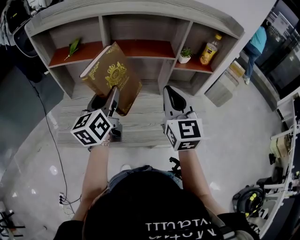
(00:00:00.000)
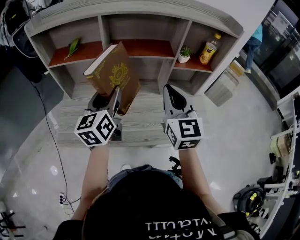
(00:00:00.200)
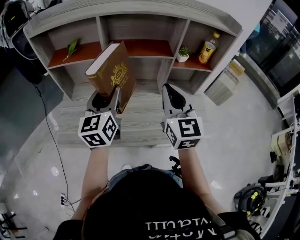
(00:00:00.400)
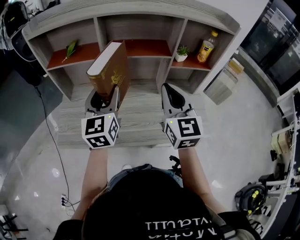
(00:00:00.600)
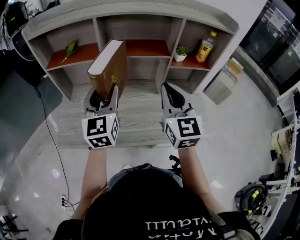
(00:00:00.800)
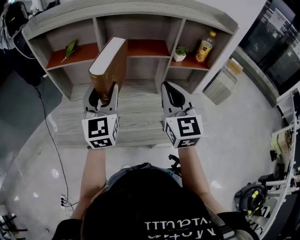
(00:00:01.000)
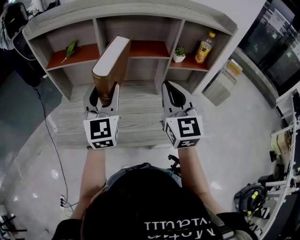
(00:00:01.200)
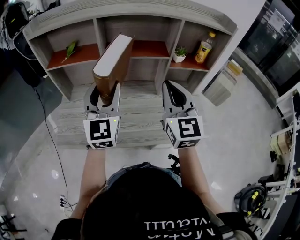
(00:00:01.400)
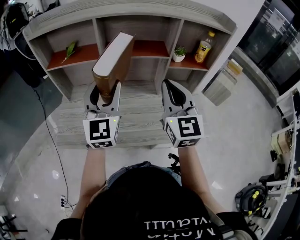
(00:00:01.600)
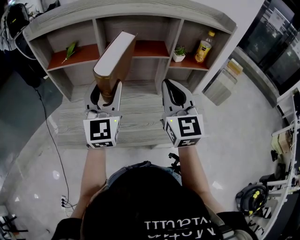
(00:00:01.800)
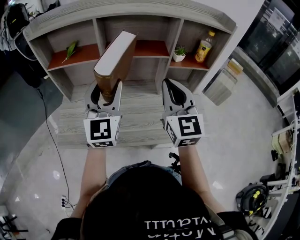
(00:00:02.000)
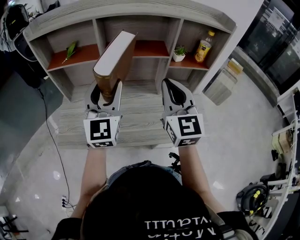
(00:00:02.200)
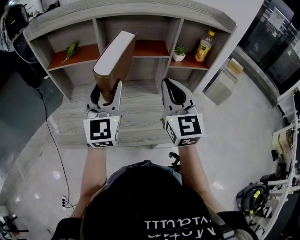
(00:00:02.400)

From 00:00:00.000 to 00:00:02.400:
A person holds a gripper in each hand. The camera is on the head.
From 00:00:00.000 to 00:00:01.200: The left gripper ends up roughly 5 cm from where it was, and rolls clockwise, seen from behind, by about 40 degrees.
From 00:00:01.200 to 00:00:02.400: There are only small adjustments of the grippers.

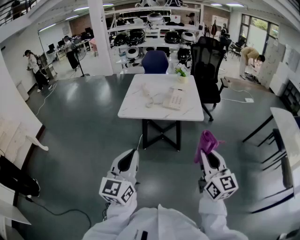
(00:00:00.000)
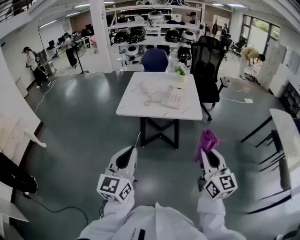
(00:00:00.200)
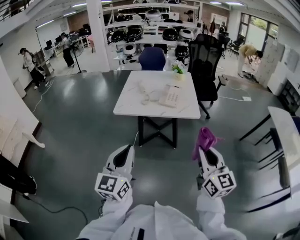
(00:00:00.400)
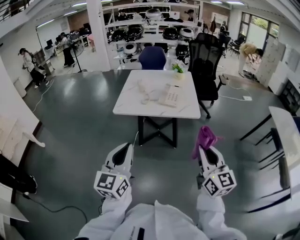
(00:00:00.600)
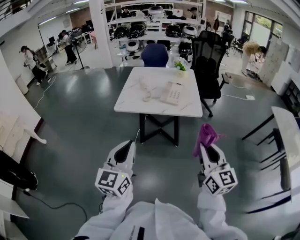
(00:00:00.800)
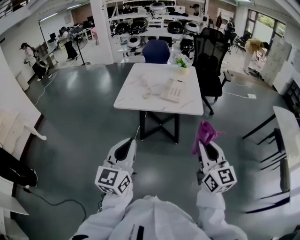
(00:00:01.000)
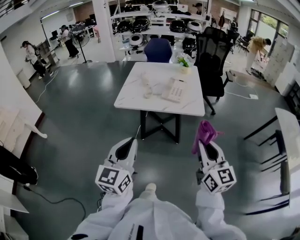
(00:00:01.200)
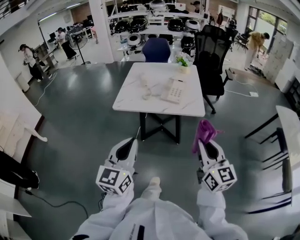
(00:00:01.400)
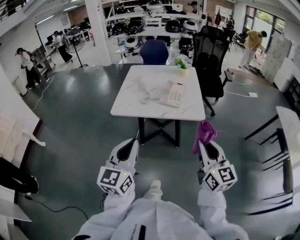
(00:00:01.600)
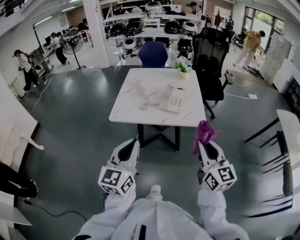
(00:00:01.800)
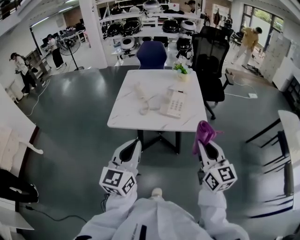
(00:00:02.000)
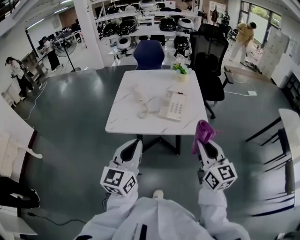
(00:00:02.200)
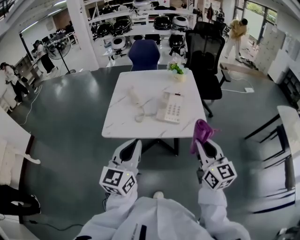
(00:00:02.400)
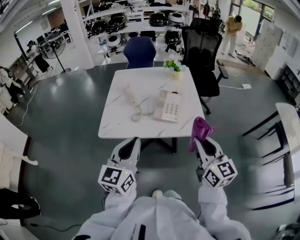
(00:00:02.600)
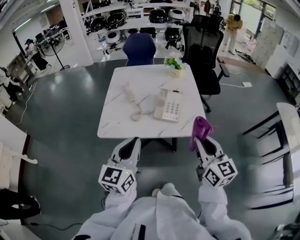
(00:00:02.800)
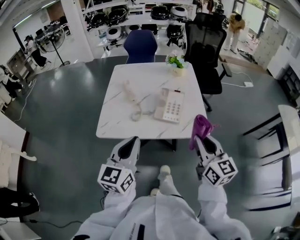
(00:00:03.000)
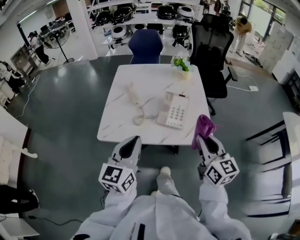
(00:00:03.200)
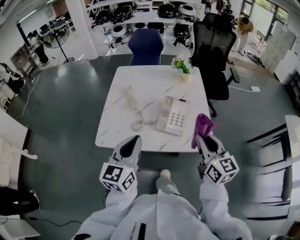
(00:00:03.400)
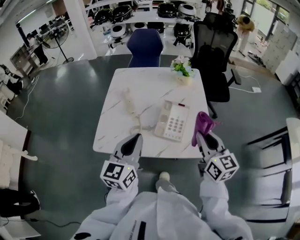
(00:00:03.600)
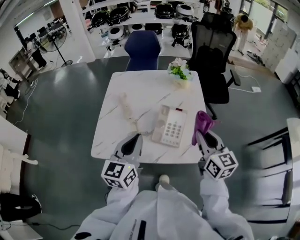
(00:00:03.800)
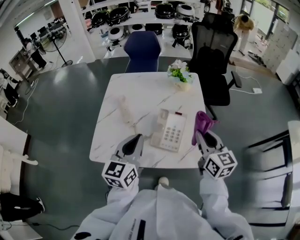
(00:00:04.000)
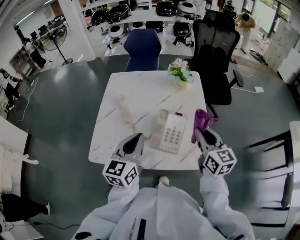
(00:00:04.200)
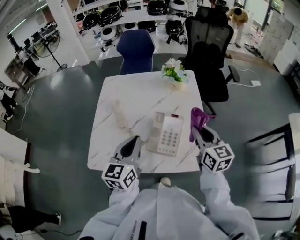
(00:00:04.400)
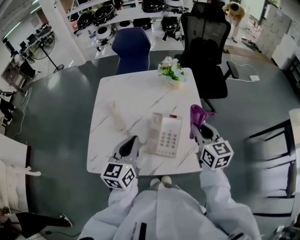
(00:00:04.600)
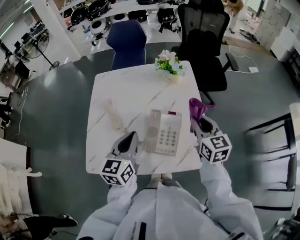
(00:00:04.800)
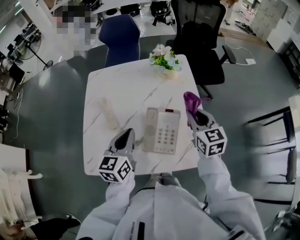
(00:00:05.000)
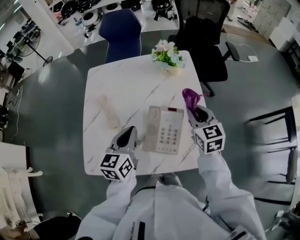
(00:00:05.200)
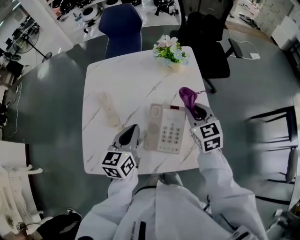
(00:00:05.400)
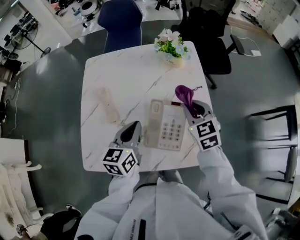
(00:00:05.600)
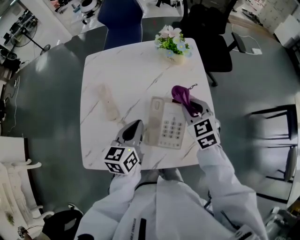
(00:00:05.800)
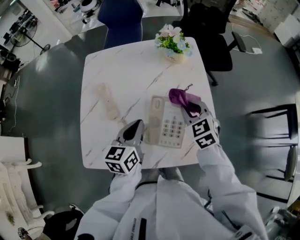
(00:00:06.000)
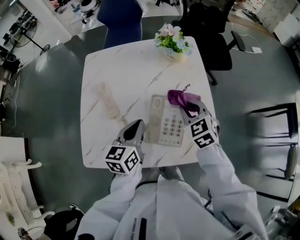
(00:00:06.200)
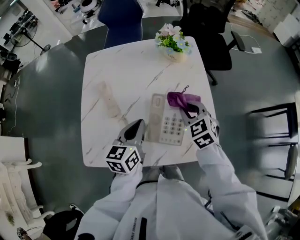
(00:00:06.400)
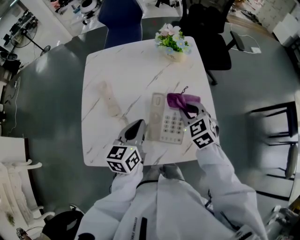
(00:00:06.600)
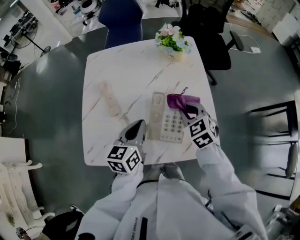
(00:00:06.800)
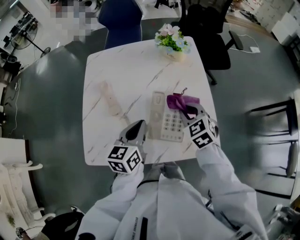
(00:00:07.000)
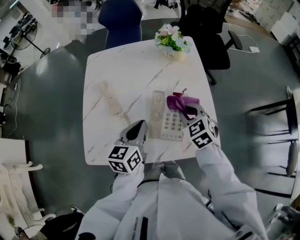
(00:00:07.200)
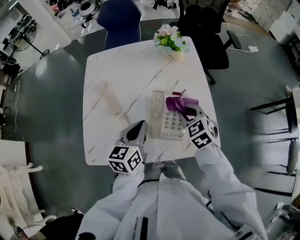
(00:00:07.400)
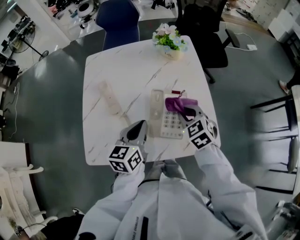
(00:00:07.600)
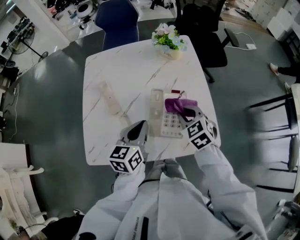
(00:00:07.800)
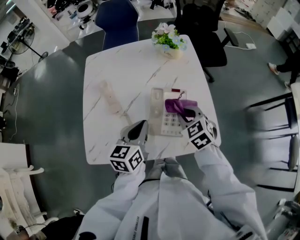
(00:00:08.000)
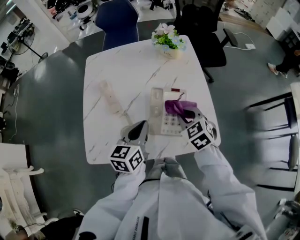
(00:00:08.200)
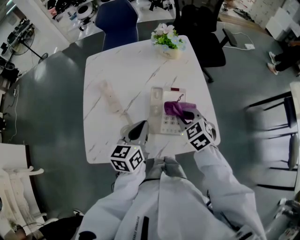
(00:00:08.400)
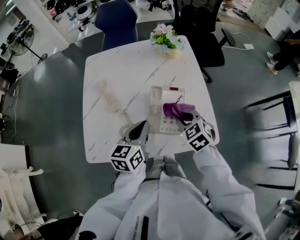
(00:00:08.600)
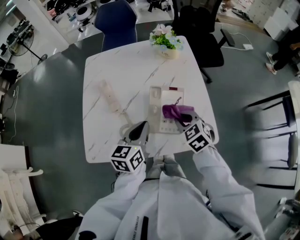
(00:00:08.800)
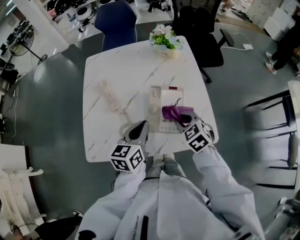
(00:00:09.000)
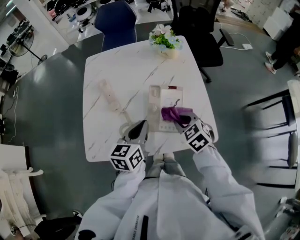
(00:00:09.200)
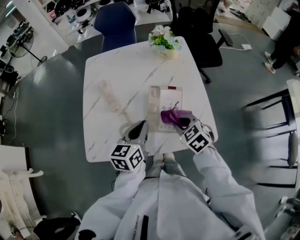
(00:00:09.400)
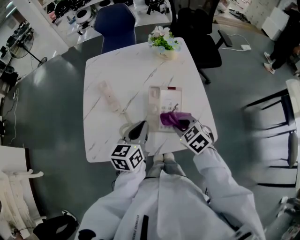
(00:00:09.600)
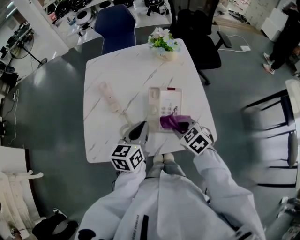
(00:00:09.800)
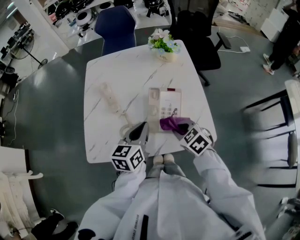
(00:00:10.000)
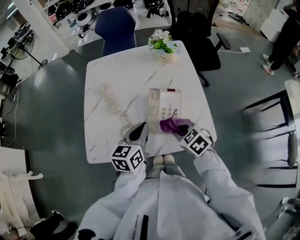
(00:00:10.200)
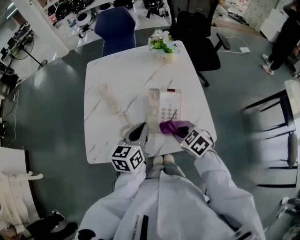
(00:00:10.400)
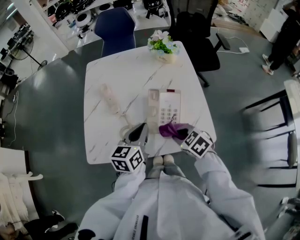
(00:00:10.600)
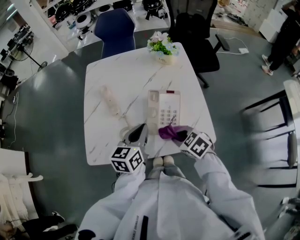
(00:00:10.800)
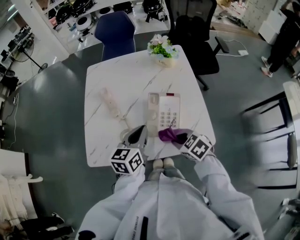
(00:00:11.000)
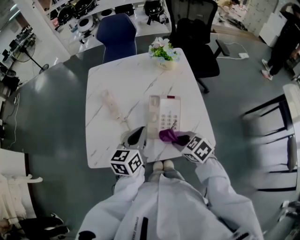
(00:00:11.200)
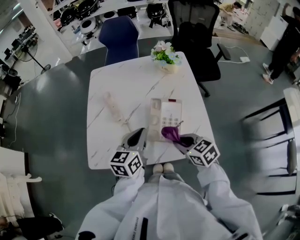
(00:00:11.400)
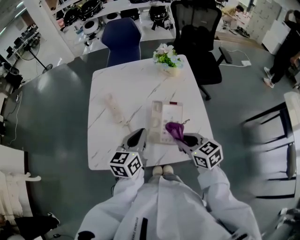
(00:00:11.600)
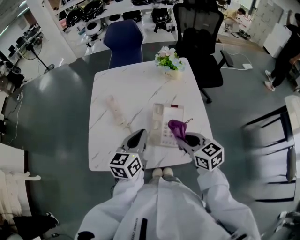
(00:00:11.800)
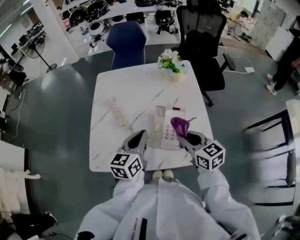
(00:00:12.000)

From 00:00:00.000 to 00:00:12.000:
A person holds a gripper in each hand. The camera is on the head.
From 00:00:00.000 to 00:00:01.600: The two grippers go approximately 10 cm forward.
From 00:00:01.600 to 00:00:03.000: The grippers both shift forward by some 25 cm.
From 00:00:03.000 to 00:00:04.400: Both grippers travel together forward, roughly 25 cm.
From 00:00:04.400 to 00:00:06.000: The right gripper is displaced downward, forward and to the left by roughly 15 cm, and rotates roughly 40 degrees; the left gripper is displaced downward and forward by about 15 cm.
From 00:00:06.000 to 00:00:07.600: The right gripper goes some 5 cm backward.
From 00:00:07.600 to 00:00:09.000: The right gripper travels backward by about 5 cm.
From 00:00:09.000 to 00:00:10.400: The right gripper travels backward by approximately 5 cm.
From 00:00:10.400 to 00:00:12.000: The right gripper is displaced upward by approximately 10 cm, and rotates roughly 30 degrees.

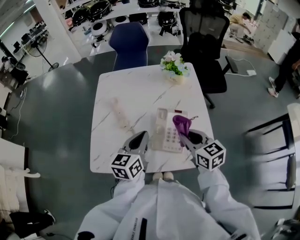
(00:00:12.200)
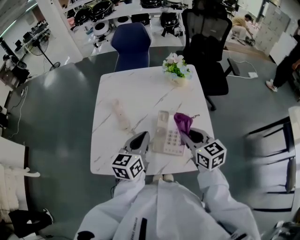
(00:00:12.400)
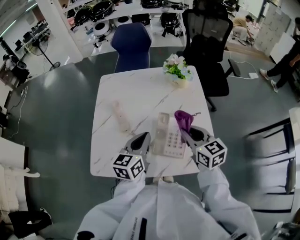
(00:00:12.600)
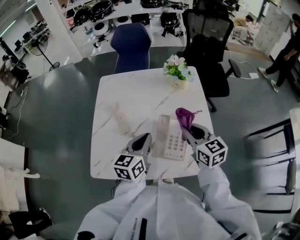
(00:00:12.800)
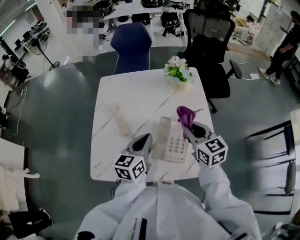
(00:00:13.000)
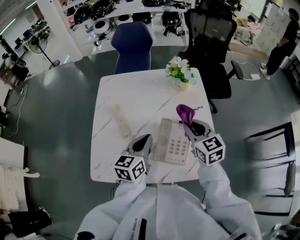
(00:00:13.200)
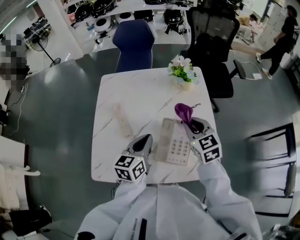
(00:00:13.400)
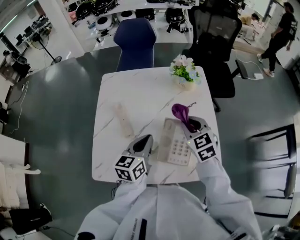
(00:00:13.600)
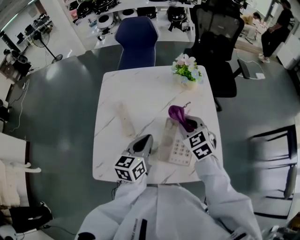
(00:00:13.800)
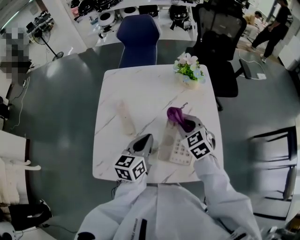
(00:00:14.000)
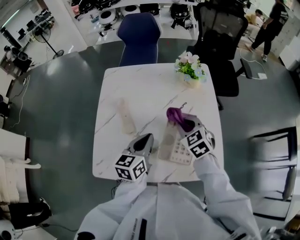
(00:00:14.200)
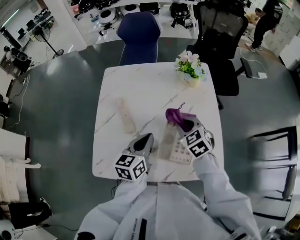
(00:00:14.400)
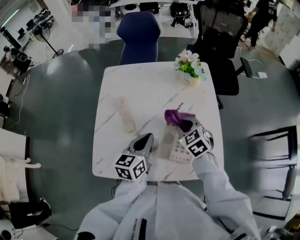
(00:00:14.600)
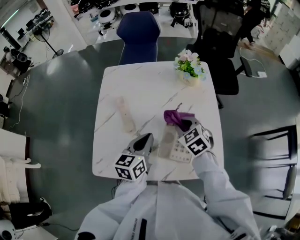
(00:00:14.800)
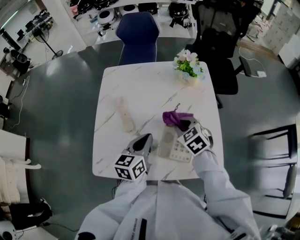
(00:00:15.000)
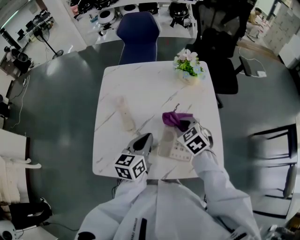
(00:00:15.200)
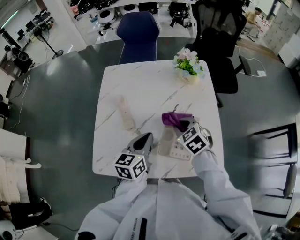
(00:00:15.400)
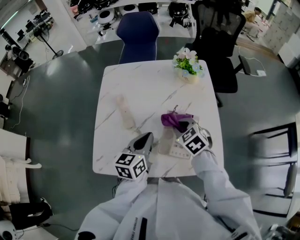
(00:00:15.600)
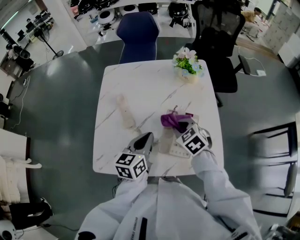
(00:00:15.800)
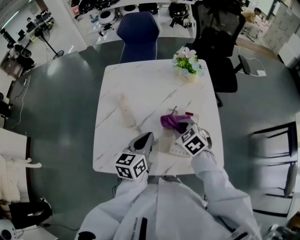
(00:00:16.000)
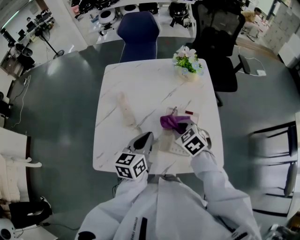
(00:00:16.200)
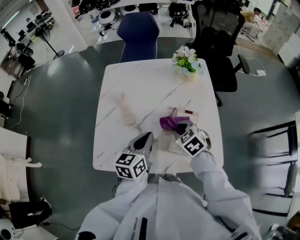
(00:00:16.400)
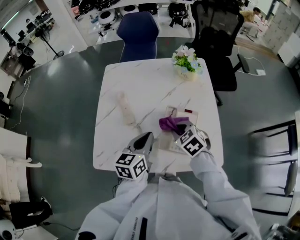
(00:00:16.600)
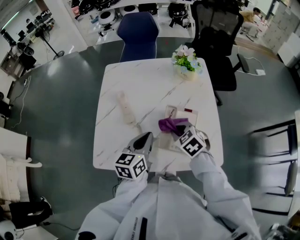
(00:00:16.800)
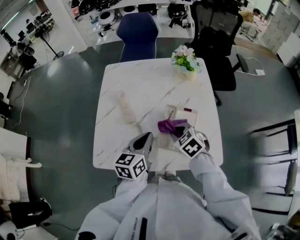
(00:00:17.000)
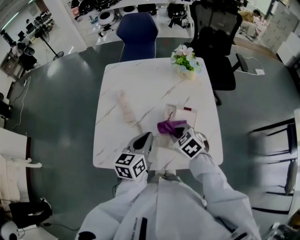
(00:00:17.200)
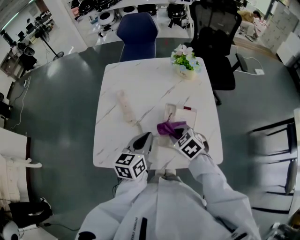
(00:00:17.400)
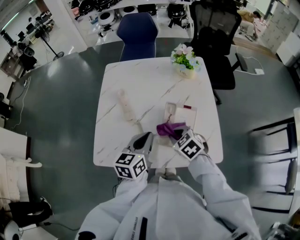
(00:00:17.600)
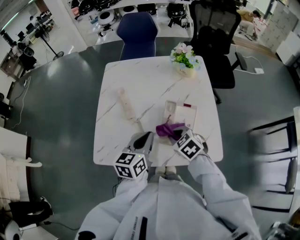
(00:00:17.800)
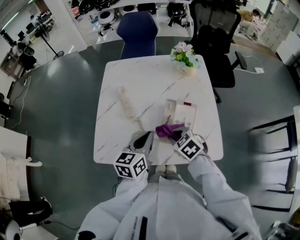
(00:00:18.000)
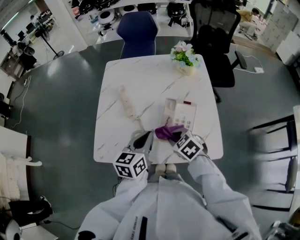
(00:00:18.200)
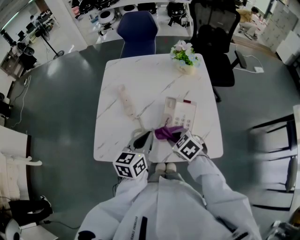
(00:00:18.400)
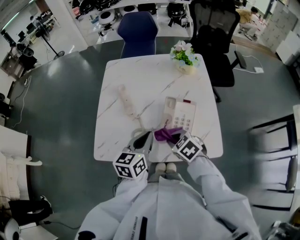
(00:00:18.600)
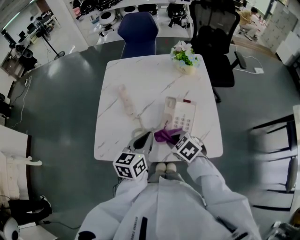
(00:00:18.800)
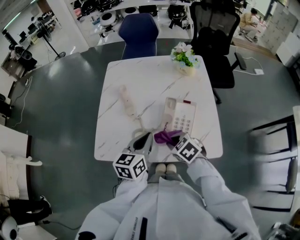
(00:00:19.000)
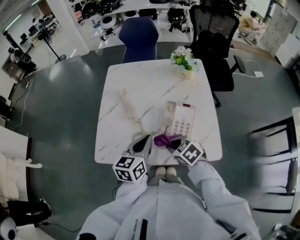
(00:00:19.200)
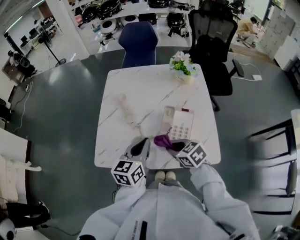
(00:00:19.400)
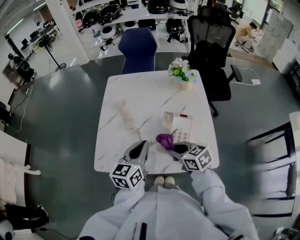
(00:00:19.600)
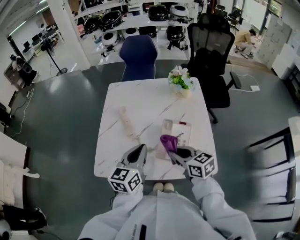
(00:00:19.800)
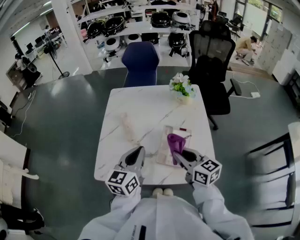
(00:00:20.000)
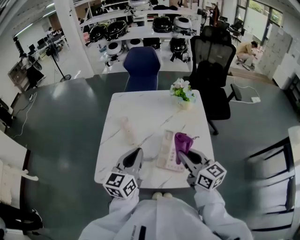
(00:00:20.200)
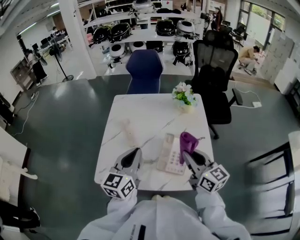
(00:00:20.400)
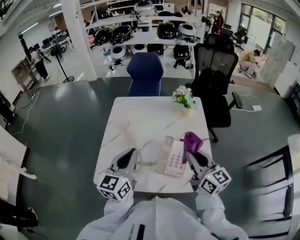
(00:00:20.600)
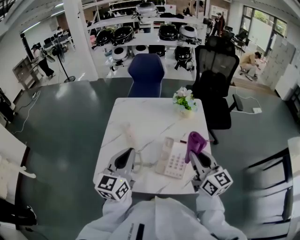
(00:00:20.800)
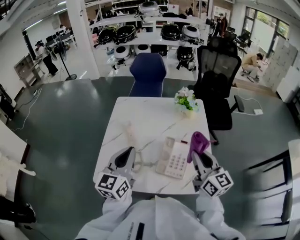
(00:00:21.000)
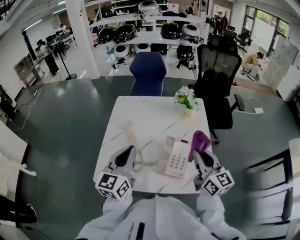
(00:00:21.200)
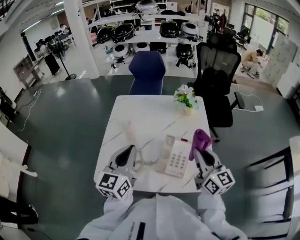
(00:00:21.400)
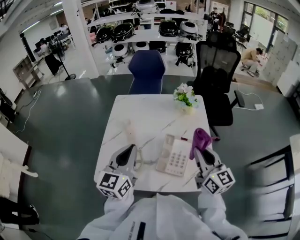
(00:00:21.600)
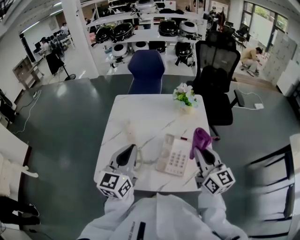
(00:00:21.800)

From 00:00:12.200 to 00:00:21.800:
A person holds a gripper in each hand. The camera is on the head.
From 00:00:12.200 to 00:00:13.800: The right gripper travels forward by roughly 15 cm, and rotates approximately 30 degrees. The left gripper goes roughly 5 cm forward.
From 00:00:13.800 to 00:00:15.400: The right gripper is displaced downward by some 5 cm.
From 00:00:15.400 to 00:00:17.000: The right gripper travels backward by approximately 5 cm.
From 00:00:17.000 to 00:00:18.600: The right gripper moves backward, roughly 10 cm.
From 00:00:18.600 to 00:00:20.200: The right gripper is displaced upward and to the right by some 20 cm, and points its fingers about 50 degrees further upward, while the left gripper goes approximately 10 cm upward.
From 00:00:20.200 to 00:00:21.800: The right gripper travels to the right by some 5 cm.
